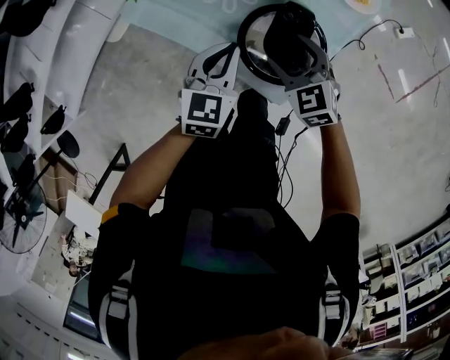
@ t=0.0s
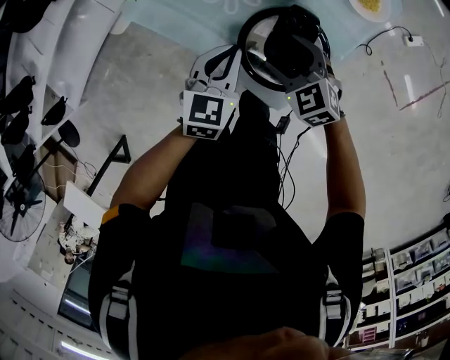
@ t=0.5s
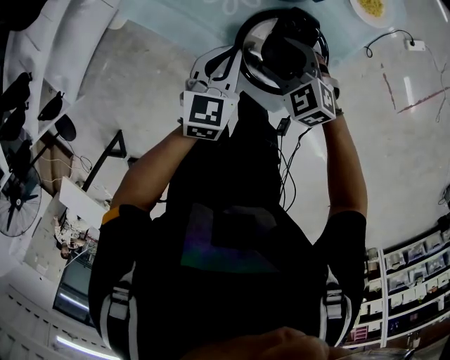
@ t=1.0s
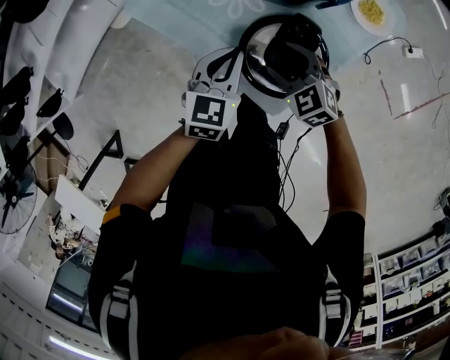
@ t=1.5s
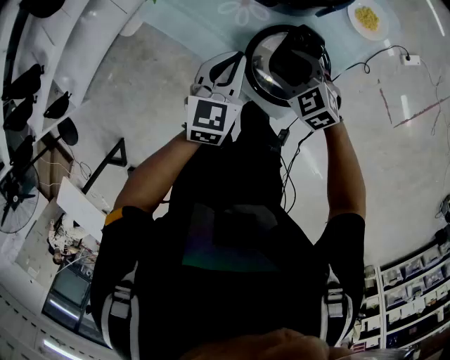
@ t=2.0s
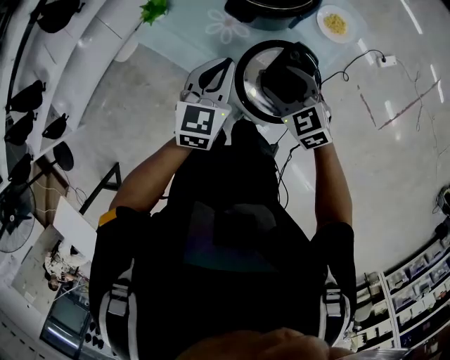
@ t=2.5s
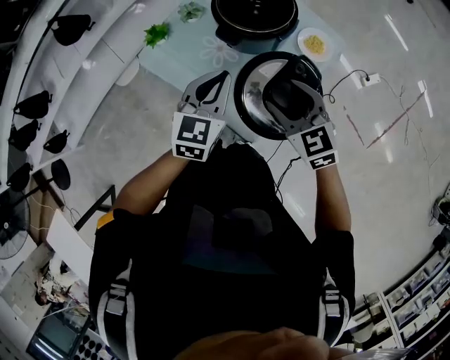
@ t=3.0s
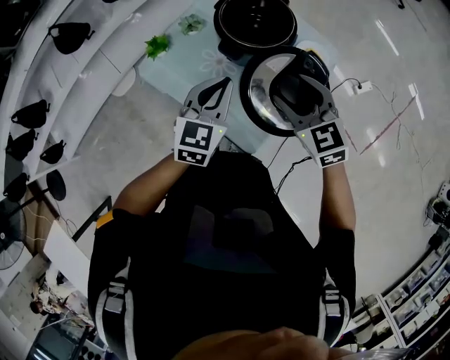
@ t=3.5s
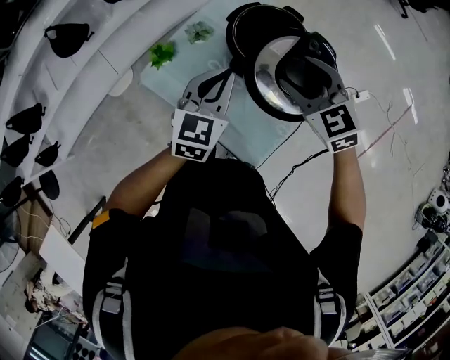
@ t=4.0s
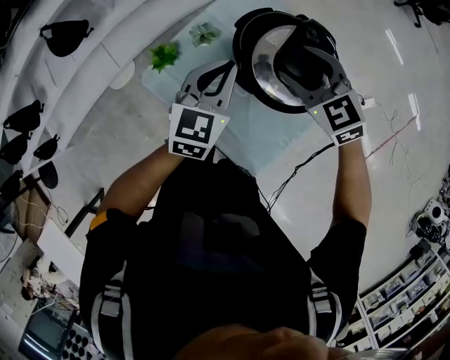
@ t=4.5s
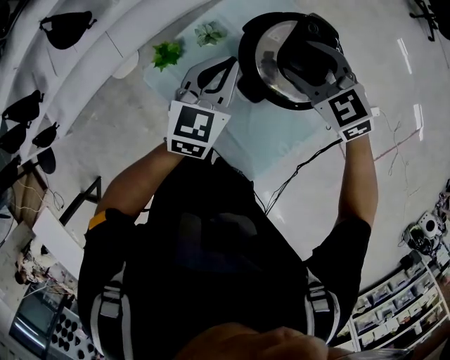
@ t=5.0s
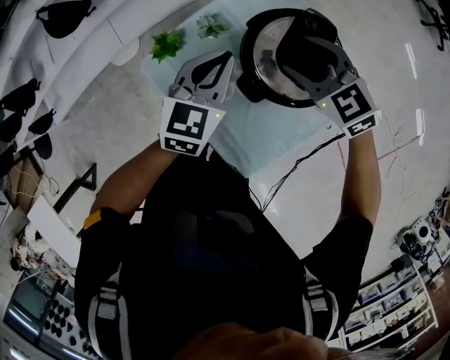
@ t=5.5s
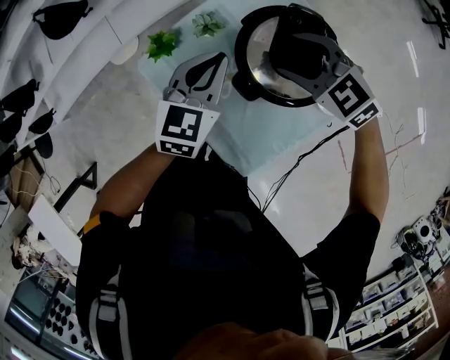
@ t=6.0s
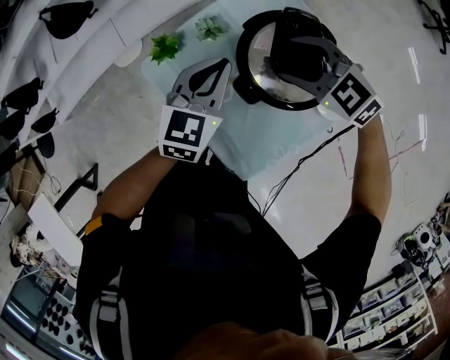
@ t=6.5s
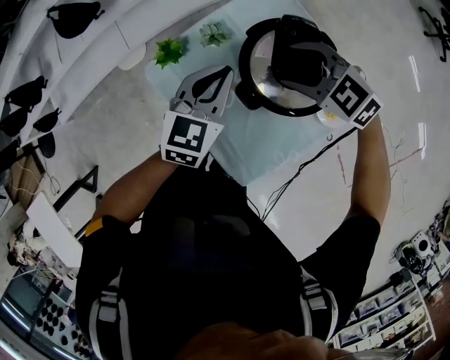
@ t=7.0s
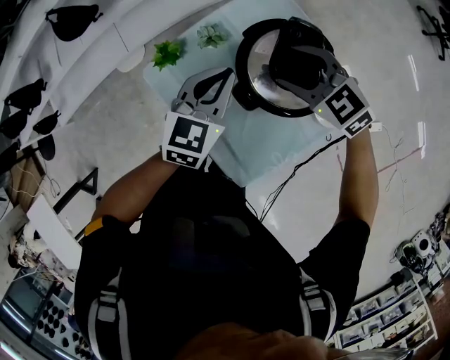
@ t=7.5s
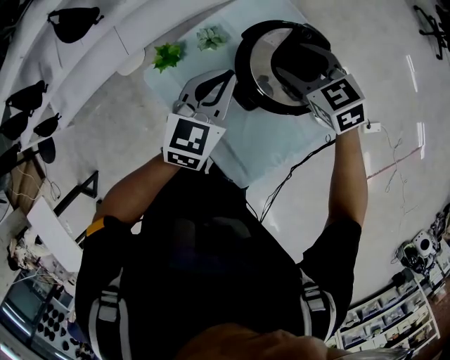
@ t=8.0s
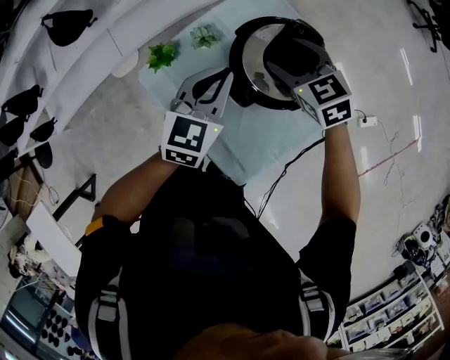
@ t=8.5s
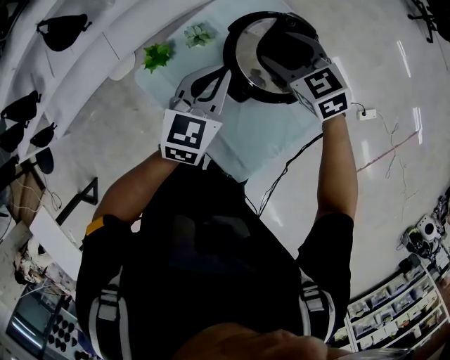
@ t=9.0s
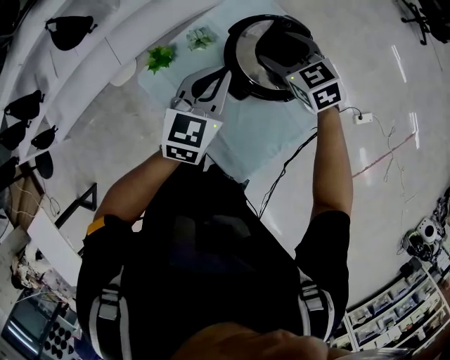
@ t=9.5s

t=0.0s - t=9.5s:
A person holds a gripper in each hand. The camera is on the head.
t=0.0s - t=2.0s: There are only small adjustments of the grippers.
t=2.0s - t=4.0s: The left gripper travels upward and forward by roughly 20 cm; the right gripper is displaced upward and forward by about 30 cm.
t=4.0s - t=5.5s: The right gripper heads forward and downward, covering approximately 15 cm, and changes its angle by approximately 20 degrees. Meanwhile the left gripper moves forward, some 10 cm.
t=7.5s - t=9.5s: The right gripper rotates about 20 degrees.

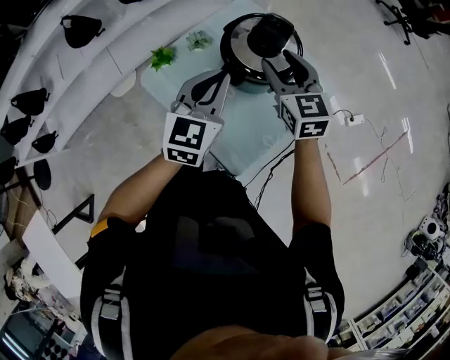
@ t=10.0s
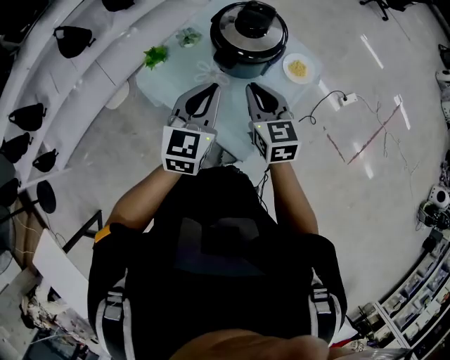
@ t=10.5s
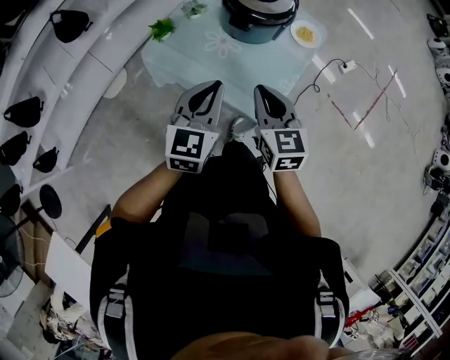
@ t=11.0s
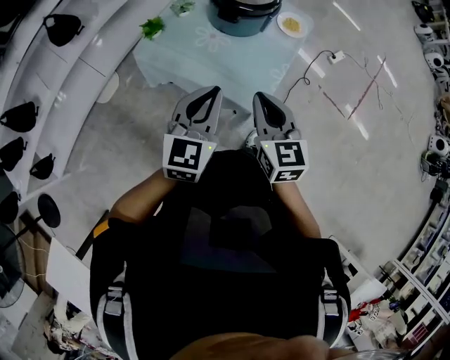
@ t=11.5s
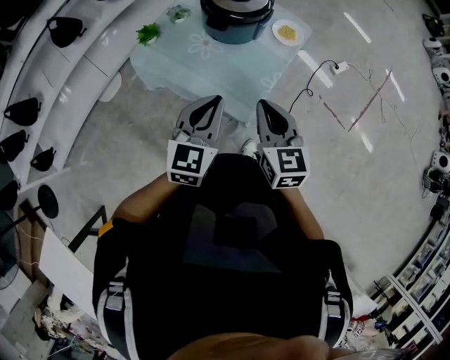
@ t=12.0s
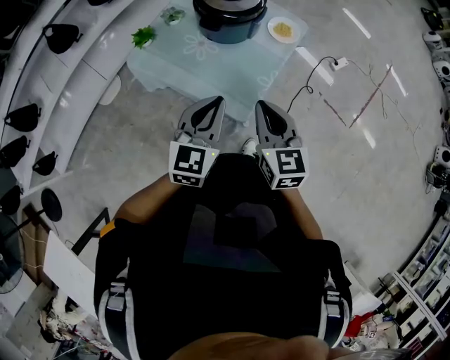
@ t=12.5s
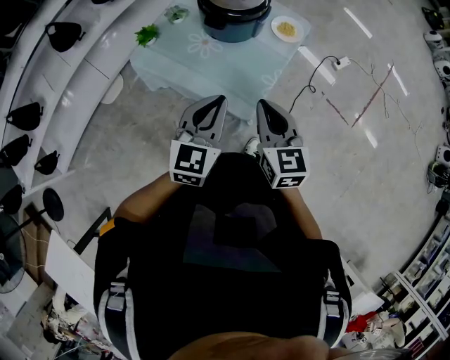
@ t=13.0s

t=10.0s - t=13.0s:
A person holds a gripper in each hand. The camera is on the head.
t=10.0s - t=11.5s: The two grippers go about 30 cm backward. The right gripper swivels approximately 20 degrees, and closes.
t=11.5s - t=13.0s: Both grippers travel together to the right, about 5 cm.

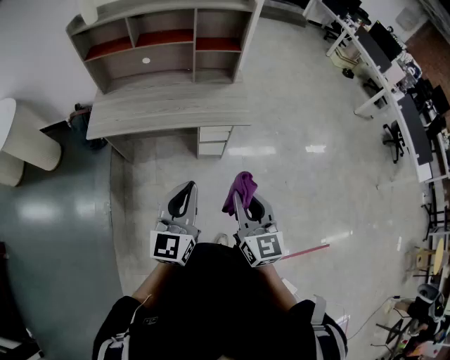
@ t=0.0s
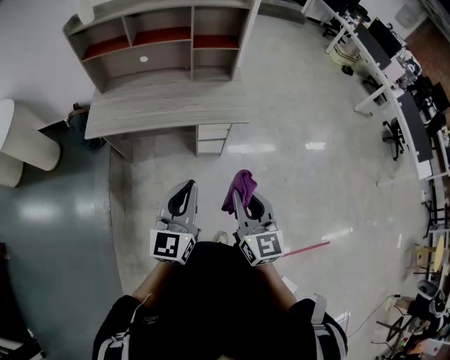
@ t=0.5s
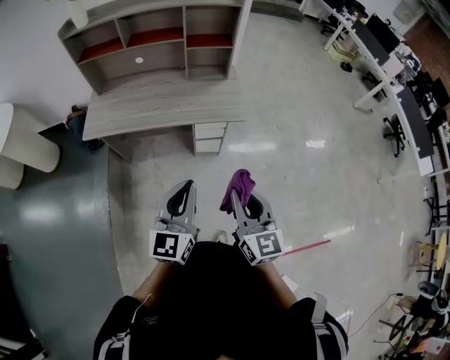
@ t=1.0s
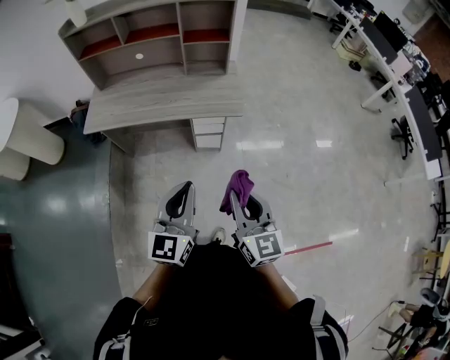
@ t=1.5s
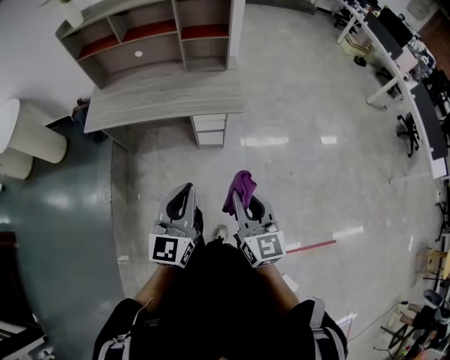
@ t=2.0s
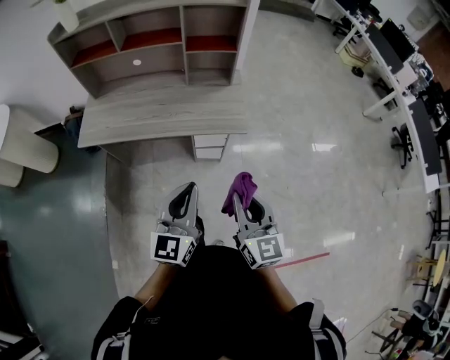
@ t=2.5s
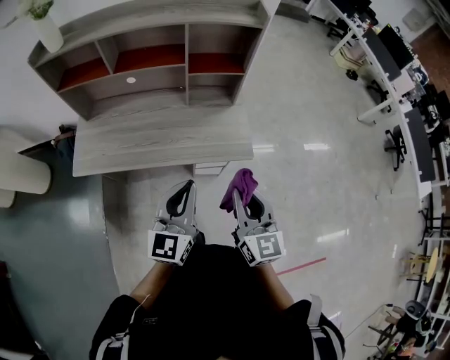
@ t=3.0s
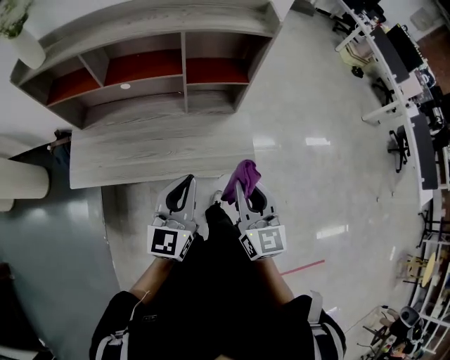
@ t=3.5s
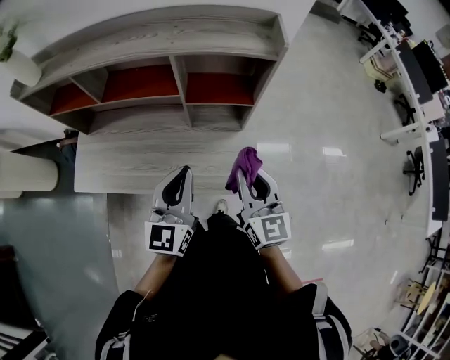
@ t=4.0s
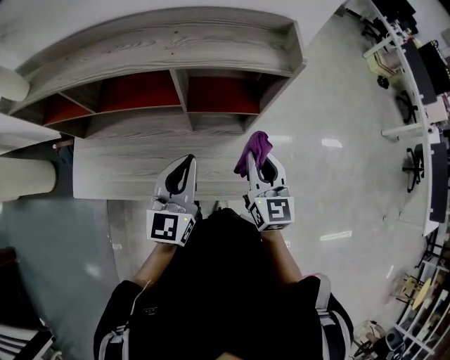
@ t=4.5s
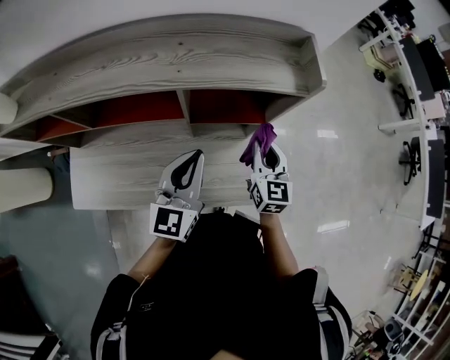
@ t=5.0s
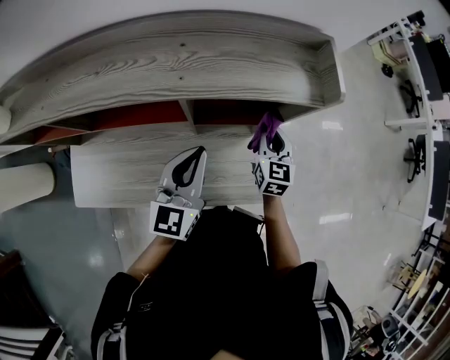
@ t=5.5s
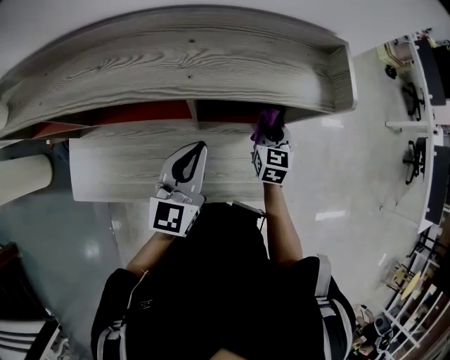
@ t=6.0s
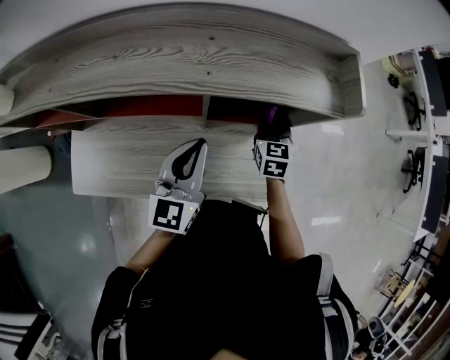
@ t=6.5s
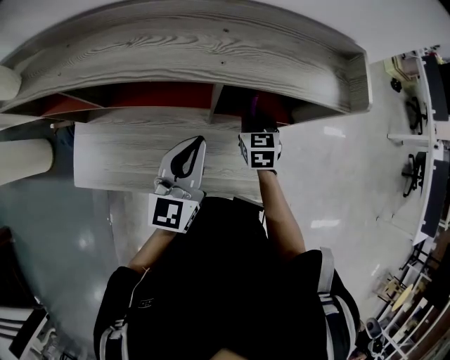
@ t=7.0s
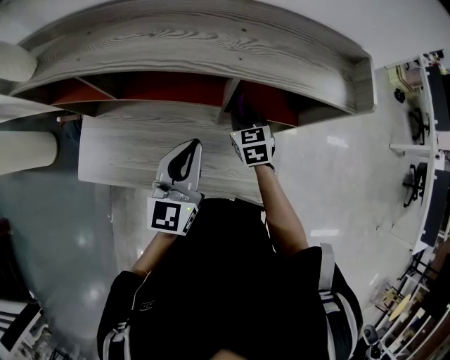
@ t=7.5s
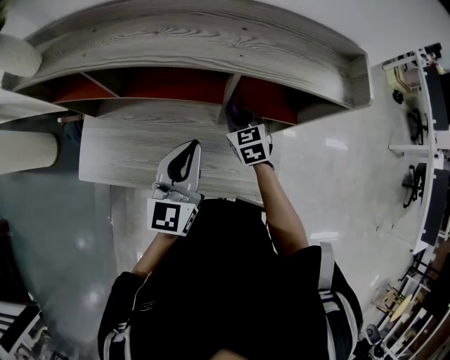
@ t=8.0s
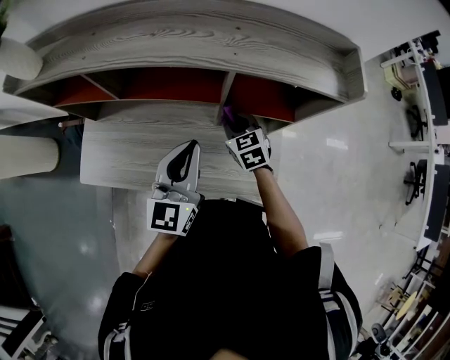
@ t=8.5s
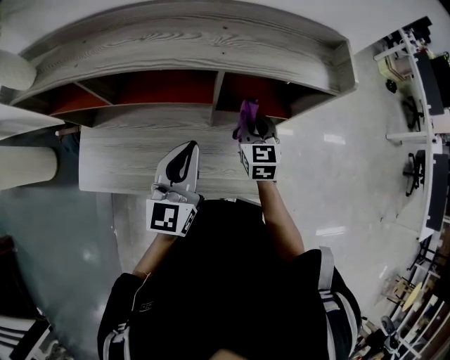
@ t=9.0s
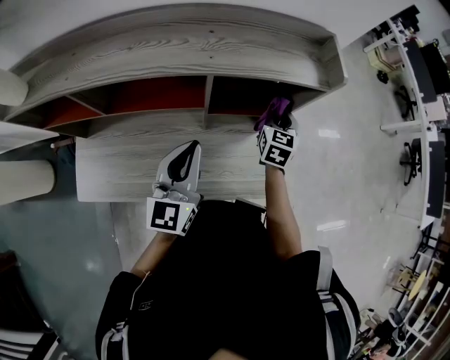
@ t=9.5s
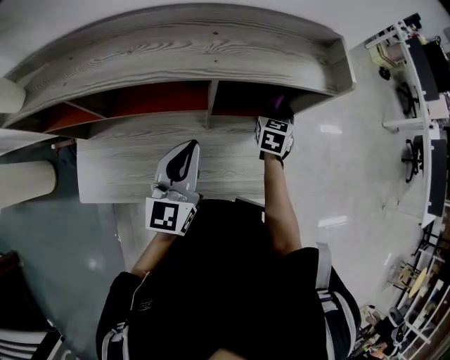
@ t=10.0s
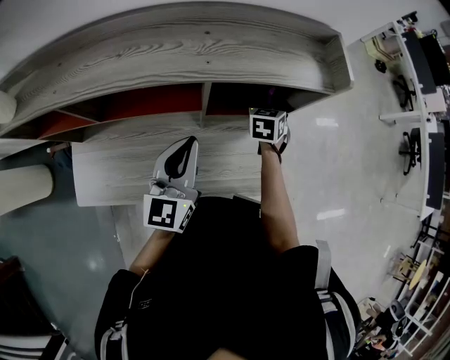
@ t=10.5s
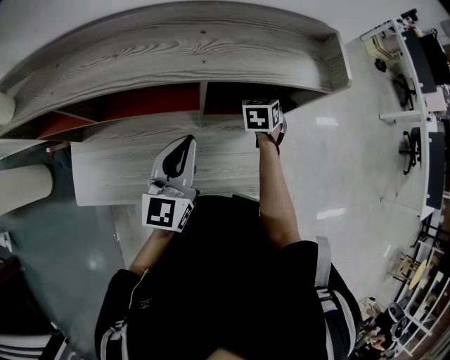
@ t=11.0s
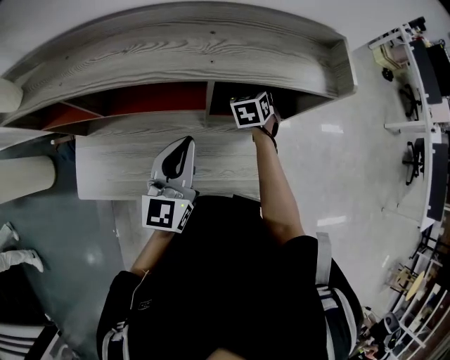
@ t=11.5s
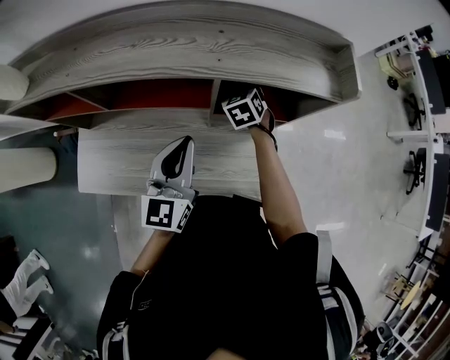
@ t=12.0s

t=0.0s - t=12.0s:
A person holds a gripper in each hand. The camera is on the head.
t=0.0s - t=2.0s: The two grippers go roughly 10 cm to the right.
t=2.0s - t=4.0s: The two grippers travel together, forward, roughly 50 cm.
t=4.0s - t=6.0s: The left gripper shifts about 20 cm forward. The right gripper travels forward and downward by about 30 cm, and swivels about 30 degrees.
t=6.0s - t=8.0s: The right gripper goes about 20 cm to the left, and changes its angle by approximately 30 degrees; the left gripper goes about 10 cm to the left and backward.
t=8.0s - t=10.0s: The right gripper ends up some 20 cm from where it was, and changes its angle by some 40 degrees.
t=10.0s - t=12.0s: The right gripper travels to the left by some 15 cm, and rotates approximately 40 degrees.

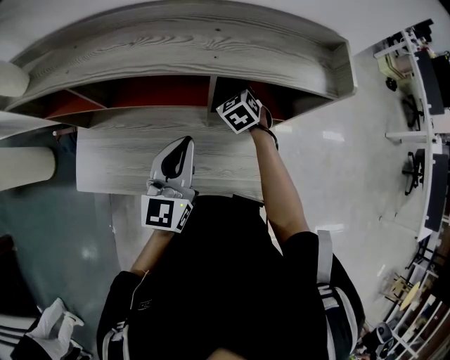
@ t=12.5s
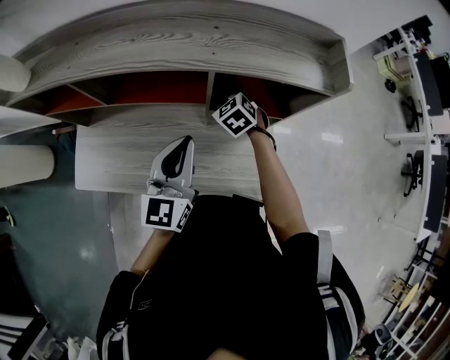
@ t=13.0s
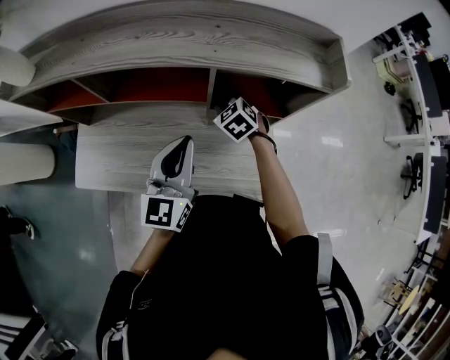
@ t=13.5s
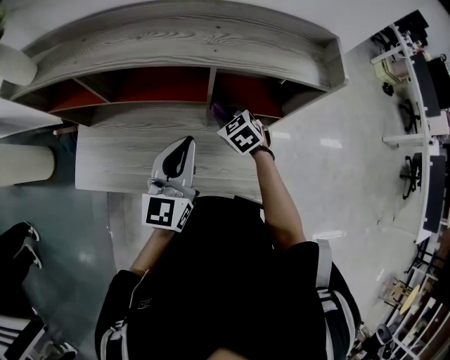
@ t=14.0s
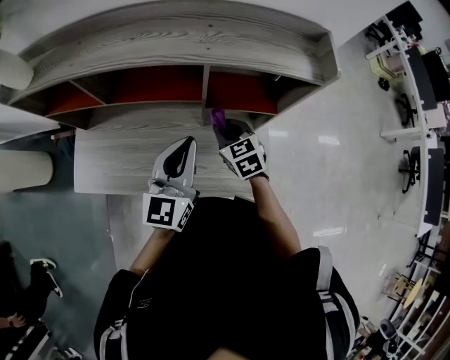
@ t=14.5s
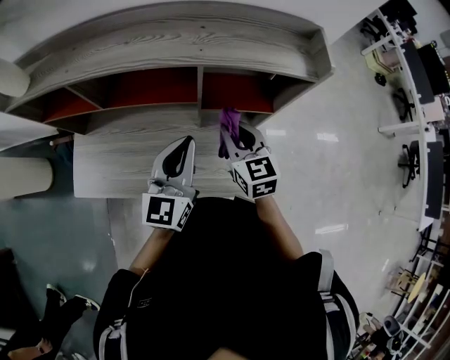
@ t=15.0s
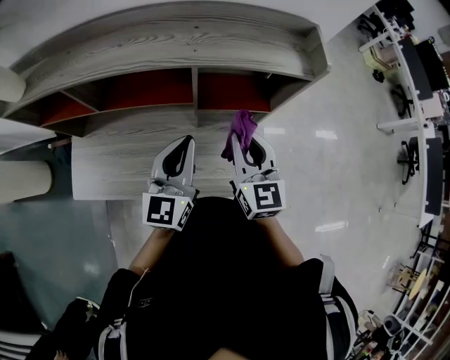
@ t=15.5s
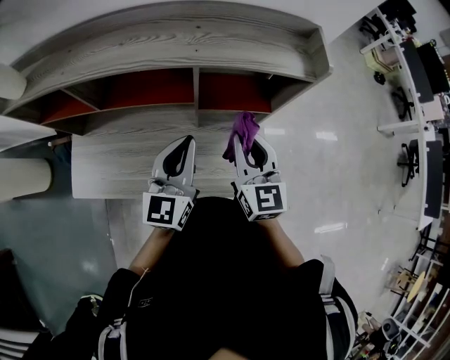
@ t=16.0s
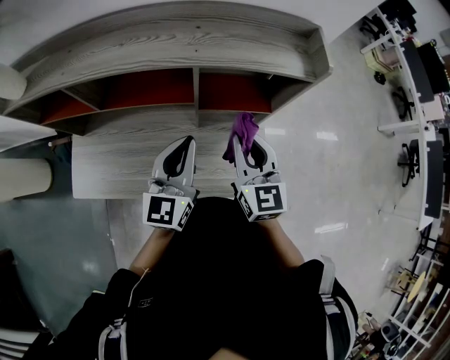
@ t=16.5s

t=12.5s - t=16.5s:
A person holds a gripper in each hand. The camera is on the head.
t=12.5s - t=14.5s: The right gripper is displaced backward by roughly 15 cm.
t=14.5s - t=16.5s: The right gripper is displaced upward and to the right by roughly 15 cm, and swivels roughly 30 degrees.
